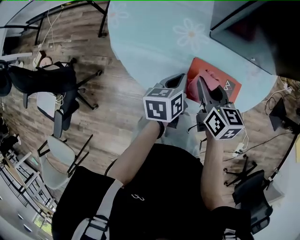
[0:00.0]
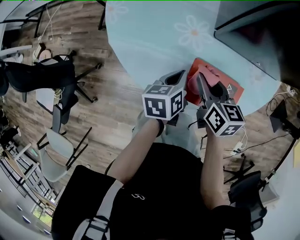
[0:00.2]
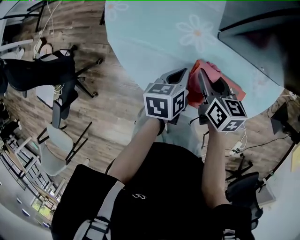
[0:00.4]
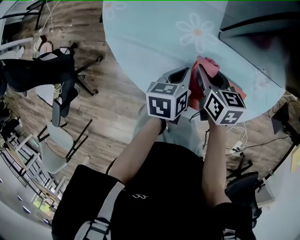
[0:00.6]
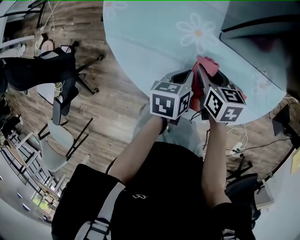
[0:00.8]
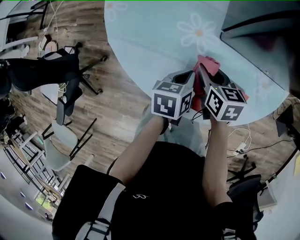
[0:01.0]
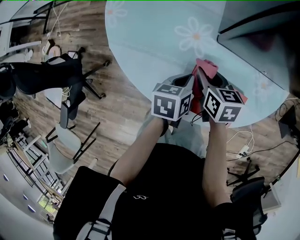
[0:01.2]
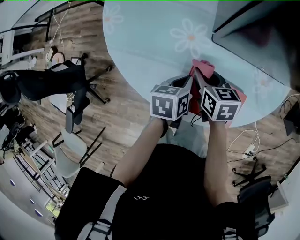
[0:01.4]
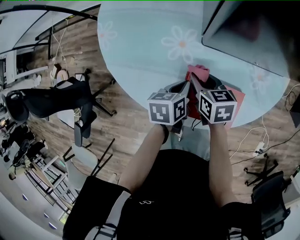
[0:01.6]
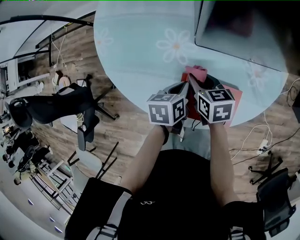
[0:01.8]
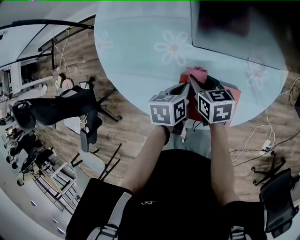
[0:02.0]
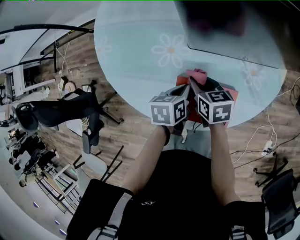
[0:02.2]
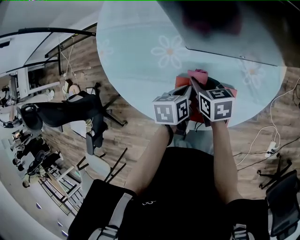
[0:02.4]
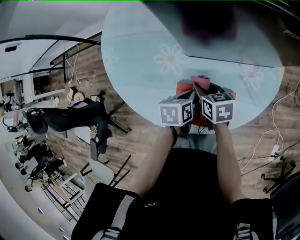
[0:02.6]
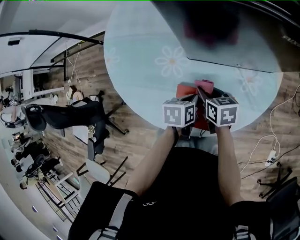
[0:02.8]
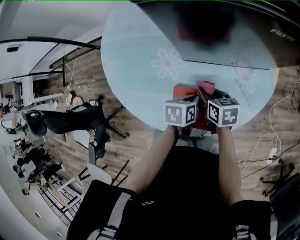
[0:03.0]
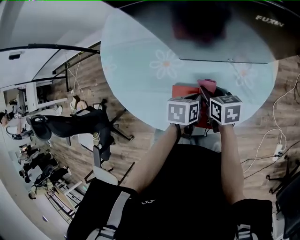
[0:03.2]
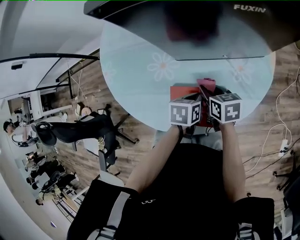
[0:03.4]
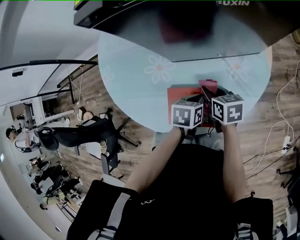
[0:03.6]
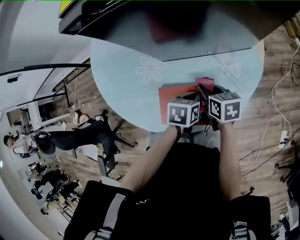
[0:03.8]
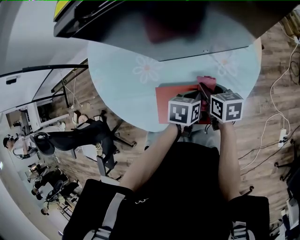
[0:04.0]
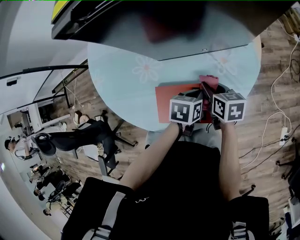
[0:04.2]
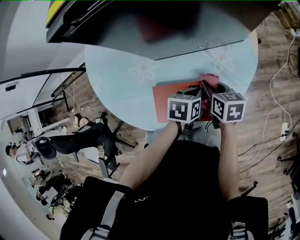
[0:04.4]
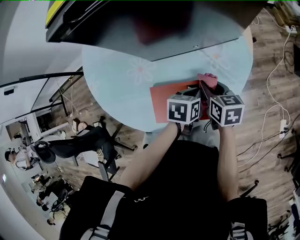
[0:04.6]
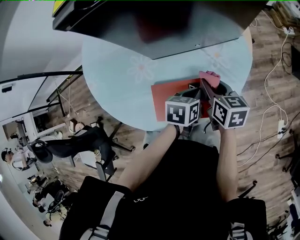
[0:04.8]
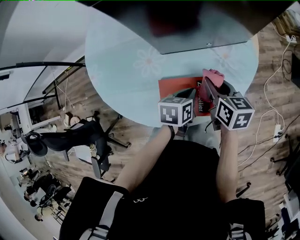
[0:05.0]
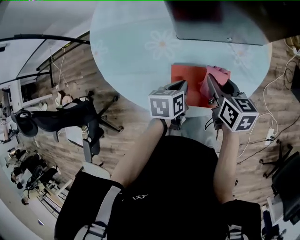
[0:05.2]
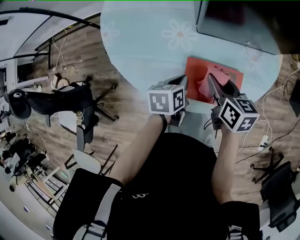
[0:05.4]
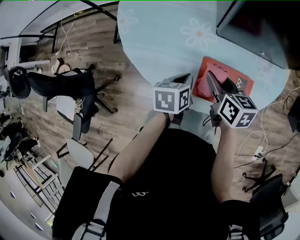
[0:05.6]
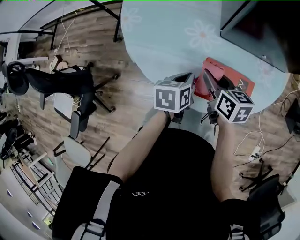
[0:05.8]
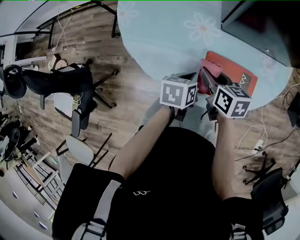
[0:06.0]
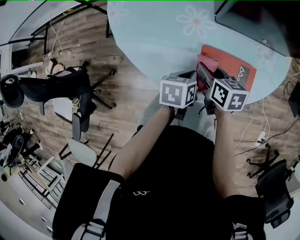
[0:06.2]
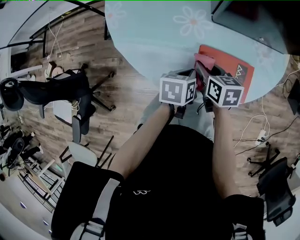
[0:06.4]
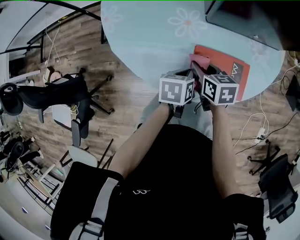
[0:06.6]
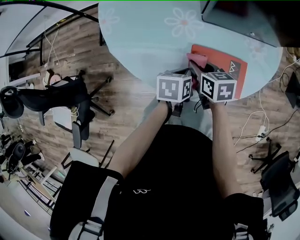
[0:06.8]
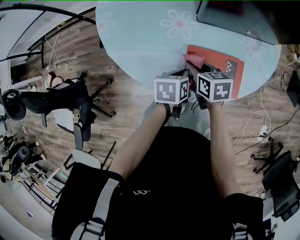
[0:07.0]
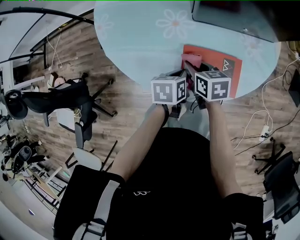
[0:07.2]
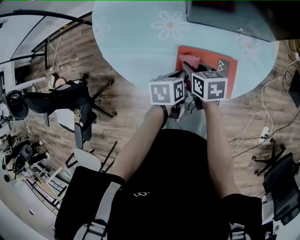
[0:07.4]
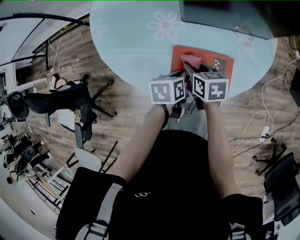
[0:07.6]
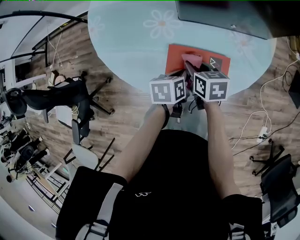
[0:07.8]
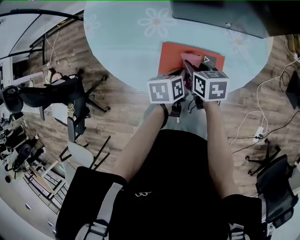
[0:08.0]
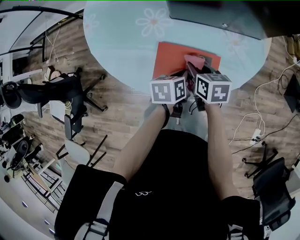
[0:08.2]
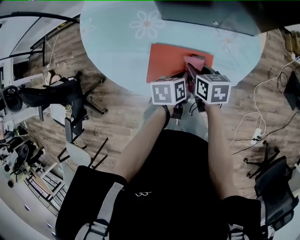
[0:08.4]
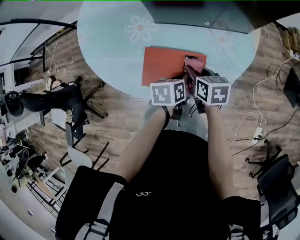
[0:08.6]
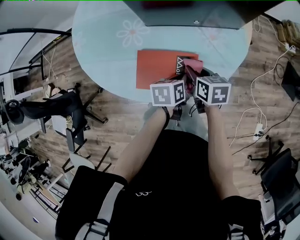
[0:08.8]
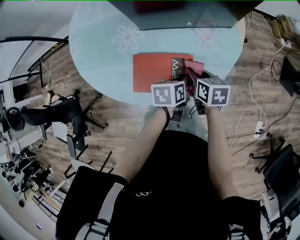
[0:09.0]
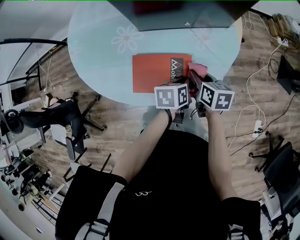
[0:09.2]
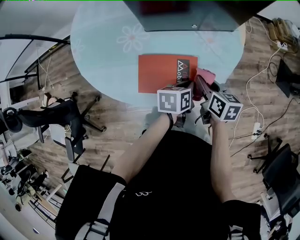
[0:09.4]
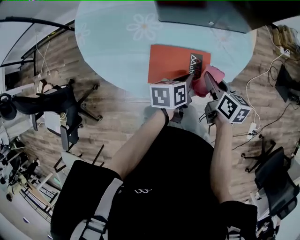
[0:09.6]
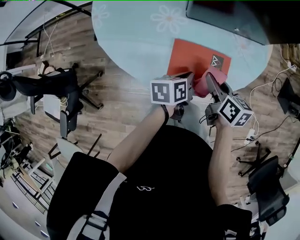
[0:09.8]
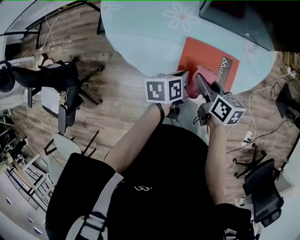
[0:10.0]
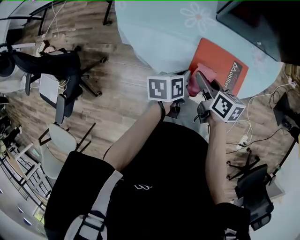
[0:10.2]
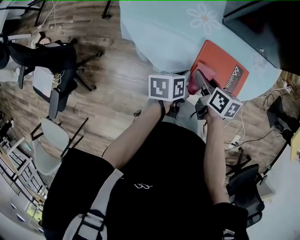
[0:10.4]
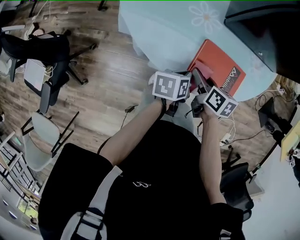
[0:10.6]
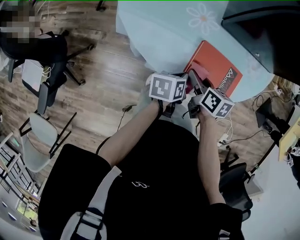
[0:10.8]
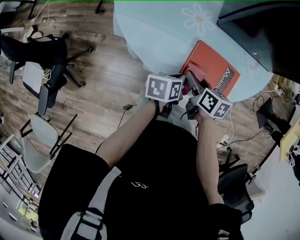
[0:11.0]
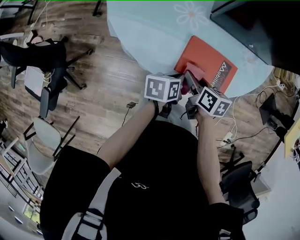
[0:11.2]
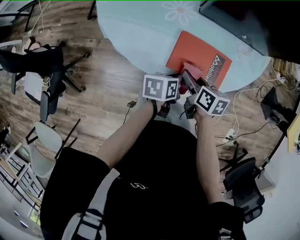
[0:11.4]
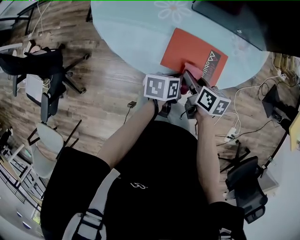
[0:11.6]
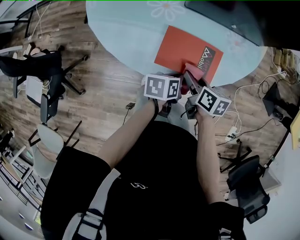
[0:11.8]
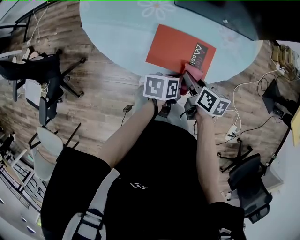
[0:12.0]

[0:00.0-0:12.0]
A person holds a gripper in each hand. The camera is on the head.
0:00.0 to 0:01.6: The right gripper goes roughly 10 cm downward and forward. The left gripper moves downward, approximately 5 cm.
0:01.6 to 0:03.0: Both grippers travel together to the right, roughly 10 cm.
0:03.0 to 0:04.4: Both grippers move to the right, approximately 10 cm.
0:04.4 to 0:06.0: The two grippers go roughly 20 cm to the left. The left gripper turns by about 20 degrees.
0:06.0 to 0:07.6: The two grippers go approximately 5 cm to the right.
0:07.6 to 0:09.0: Both grippers move to the right, some 15 cm.
0:09.0 to 0:10.4: The two grippers go roughly 20 cm to the left. The left gripper rotates about 20 degrees.
0:10.4 to 0:12.0: The two grippers go some 15 cm to the right.

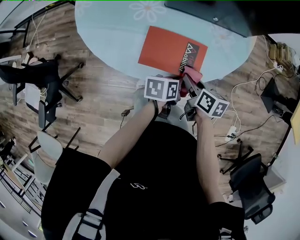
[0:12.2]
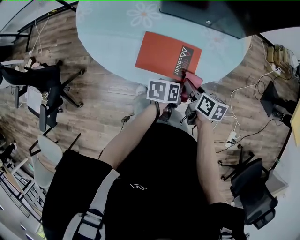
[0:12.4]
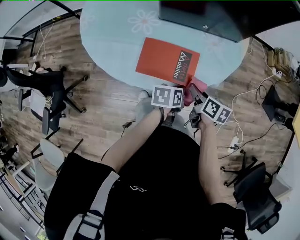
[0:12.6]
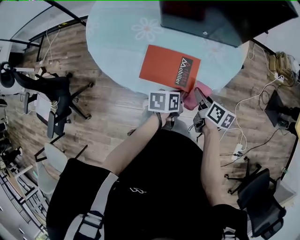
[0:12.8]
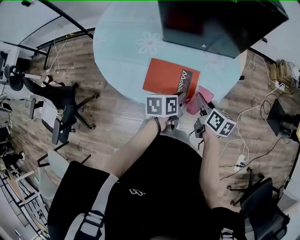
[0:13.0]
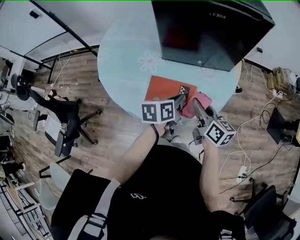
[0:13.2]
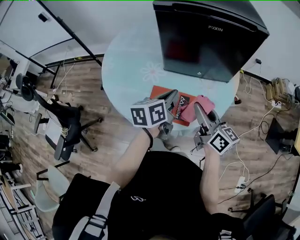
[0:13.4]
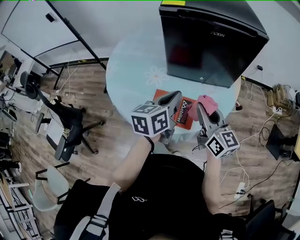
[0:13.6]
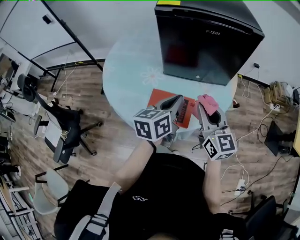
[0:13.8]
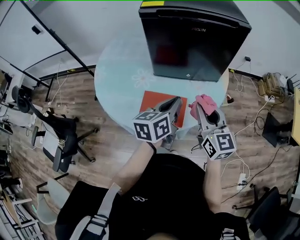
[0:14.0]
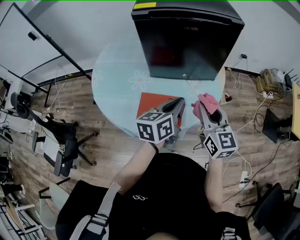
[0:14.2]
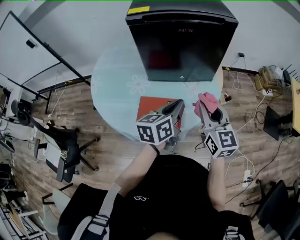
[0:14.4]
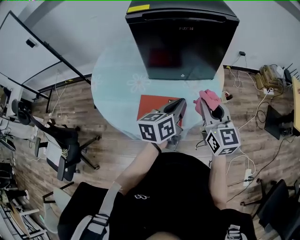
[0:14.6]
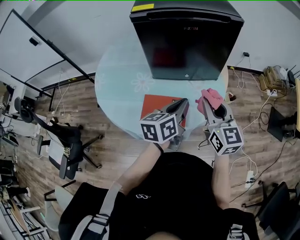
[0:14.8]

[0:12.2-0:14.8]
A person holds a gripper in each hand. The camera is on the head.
0:12.2 to 0:13.4: The left gripper moves upward and forward, about 25 cm, and rotates about 30 degrees. The right gripper moves upward, roughly 20 cm, and tilts its fingers roughly 40 degrees upward.
0:13.4 to 0:14.8: The left gripper moves to the right, some 10 cm, while the right gripper is displaced to the right and upward by some 10 cm, and swivels some 40 degrees.

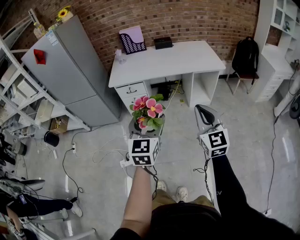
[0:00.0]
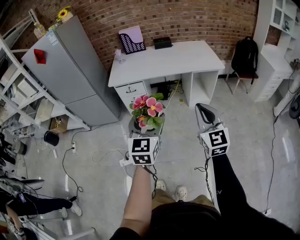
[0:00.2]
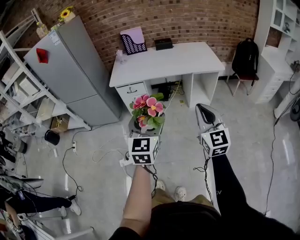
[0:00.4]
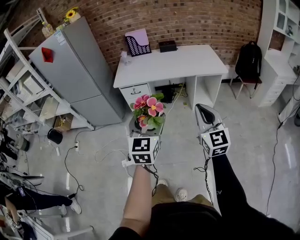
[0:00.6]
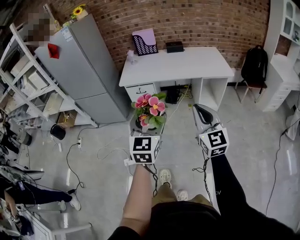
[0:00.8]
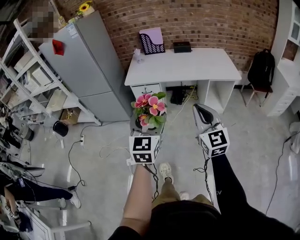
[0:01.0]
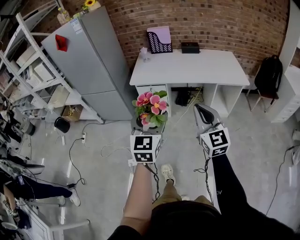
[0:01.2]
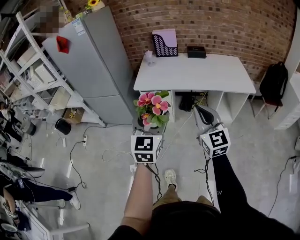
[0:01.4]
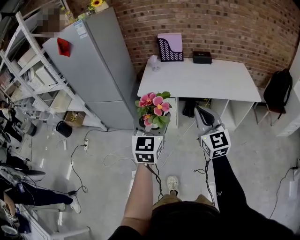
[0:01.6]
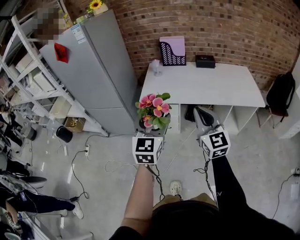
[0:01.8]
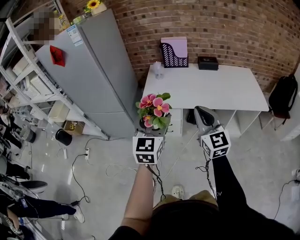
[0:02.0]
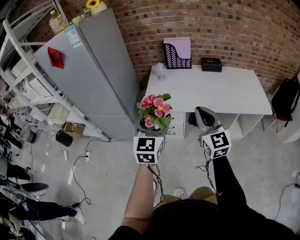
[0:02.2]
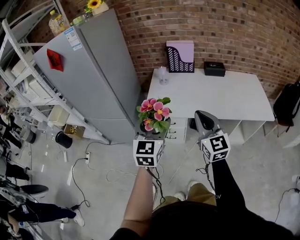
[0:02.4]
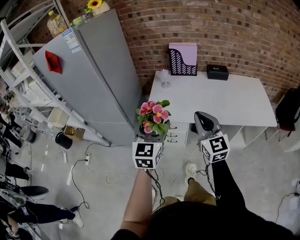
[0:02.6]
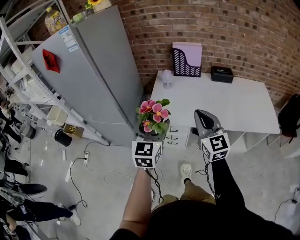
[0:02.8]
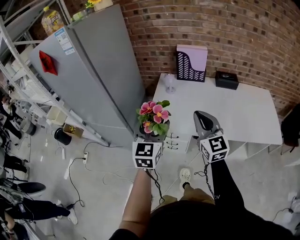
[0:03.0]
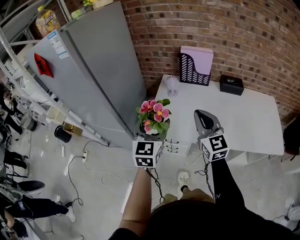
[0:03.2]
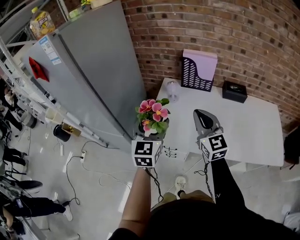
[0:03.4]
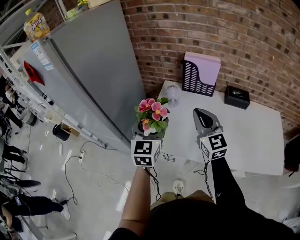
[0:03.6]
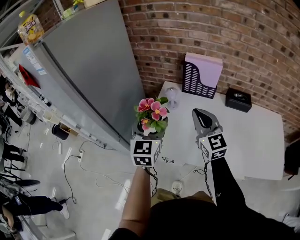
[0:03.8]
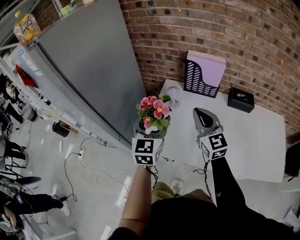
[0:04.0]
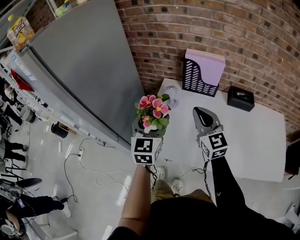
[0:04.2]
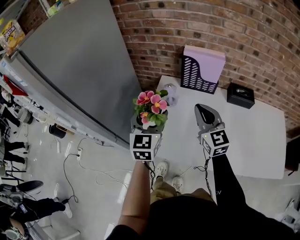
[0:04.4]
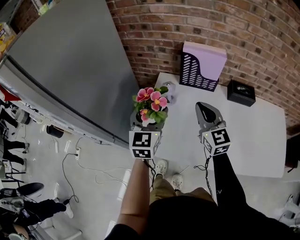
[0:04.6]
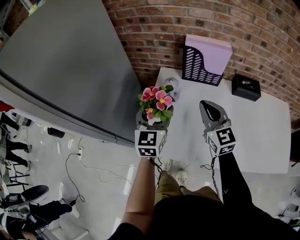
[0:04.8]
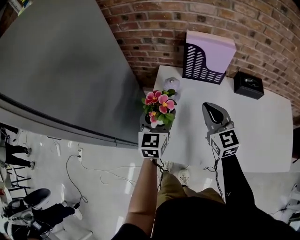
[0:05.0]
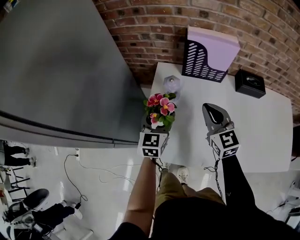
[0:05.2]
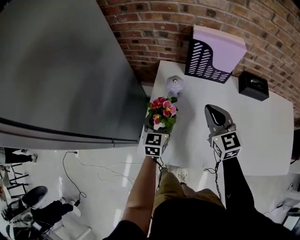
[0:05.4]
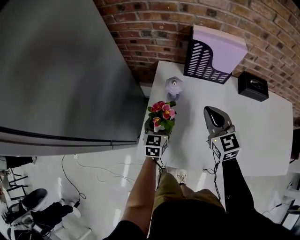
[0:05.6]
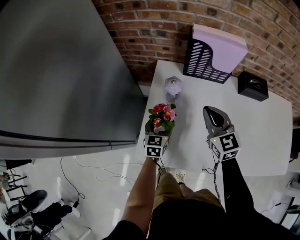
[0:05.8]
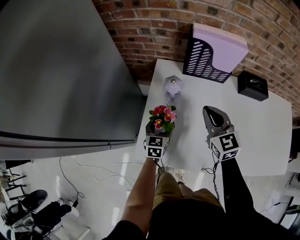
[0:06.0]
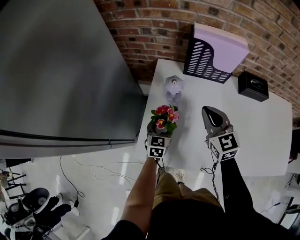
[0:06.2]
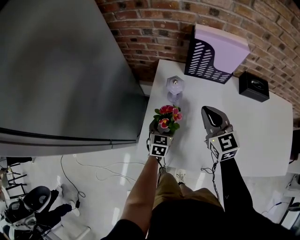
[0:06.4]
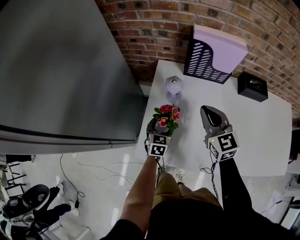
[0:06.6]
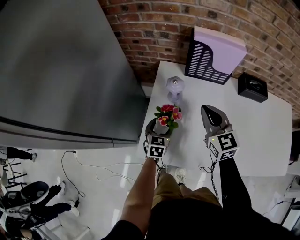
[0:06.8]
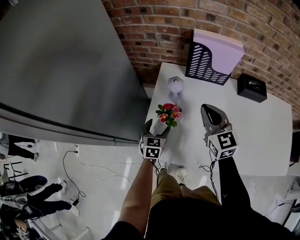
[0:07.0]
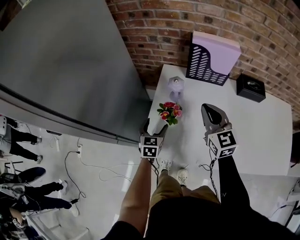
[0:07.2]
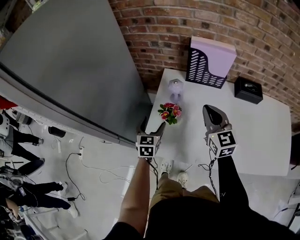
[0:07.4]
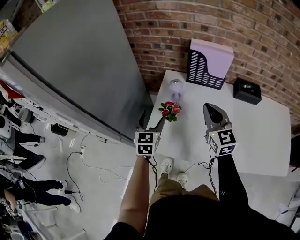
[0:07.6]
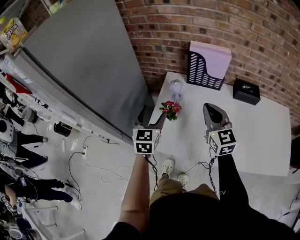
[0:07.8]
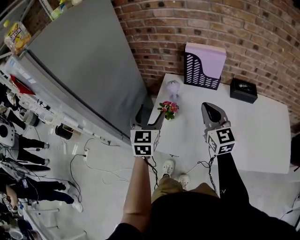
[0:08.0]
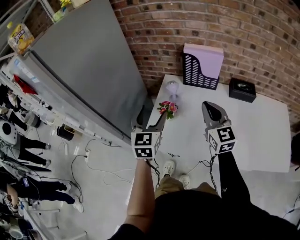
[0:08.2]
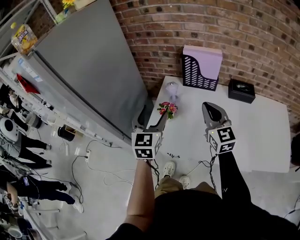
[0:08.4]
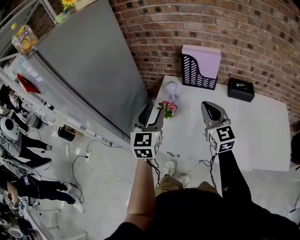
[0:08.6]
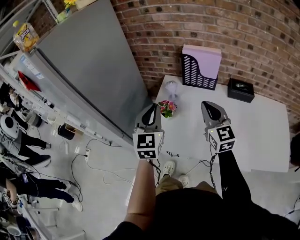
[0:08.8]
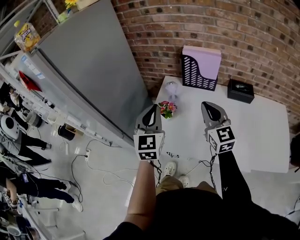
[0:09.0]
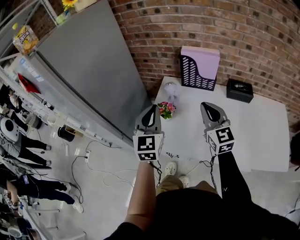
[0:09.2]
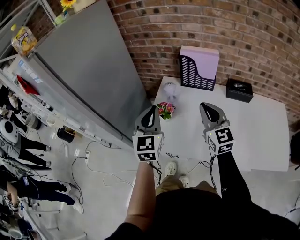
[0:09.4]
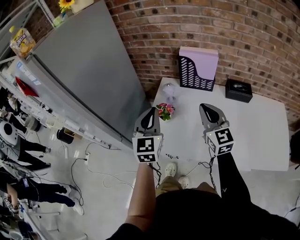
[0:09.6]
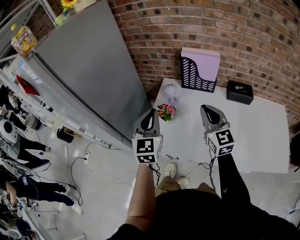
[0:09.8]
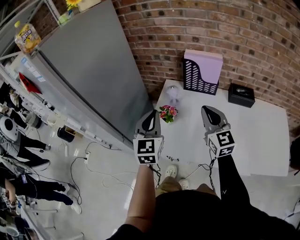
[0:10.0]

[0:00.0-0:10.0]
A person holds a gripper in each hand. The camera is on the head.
0:00.0 to 0:01.4: The grippers both shift forward and to the left by approximately 20 cm.
0:01.4 to 0:02.8: Both grippers move forward, approximately 35 cm.
0:02.8 to 0:04.2: The two grippers go some 30 cm forward.
0:04.2 to 0:05.8: The right gripper shifts about 15 cm downward and forward, while the left gripper travels downward and forward by about 30 cm, and turns by some 30 degrees.
0:05.8 to 0:07.2: The left gripper moves to the left and backward, some 5 cm; the right gripper travels upward by roughly 5 cm.
0:07.2 to 0:08.6: The right gripper shifts some 15 cm backward and upward. Meanwhile the left gripper is displaced upward by approximately 30 cm, rotates some 30 degrees, and closes its fingers.
0:08.6 to 0:10.0: The left gripper closes its fingers.
